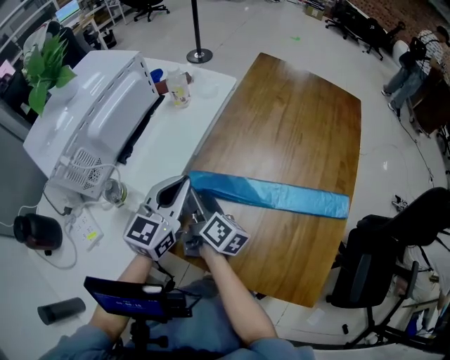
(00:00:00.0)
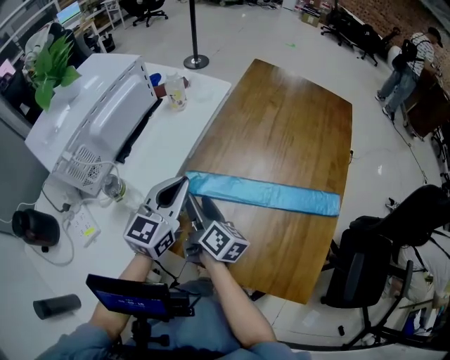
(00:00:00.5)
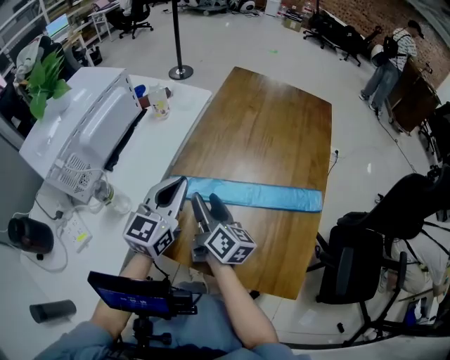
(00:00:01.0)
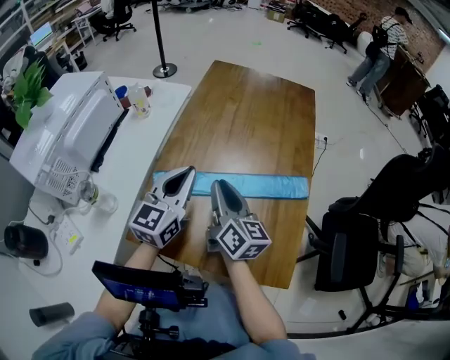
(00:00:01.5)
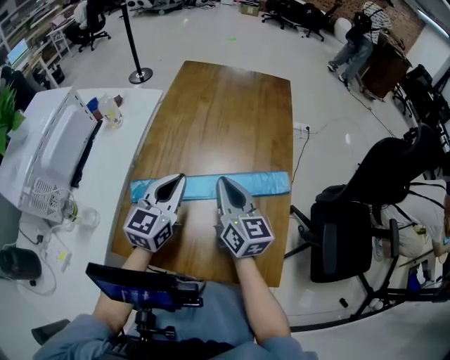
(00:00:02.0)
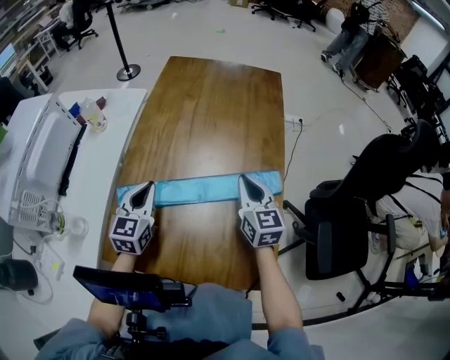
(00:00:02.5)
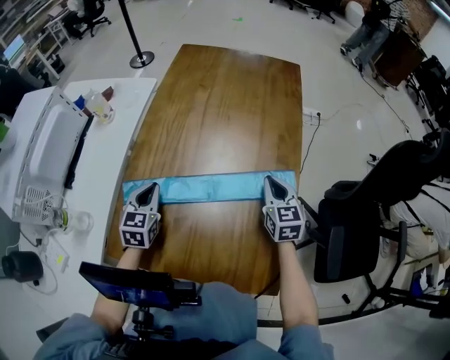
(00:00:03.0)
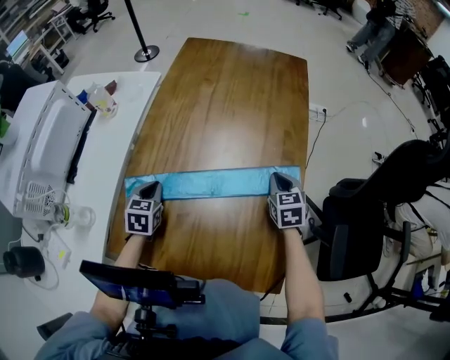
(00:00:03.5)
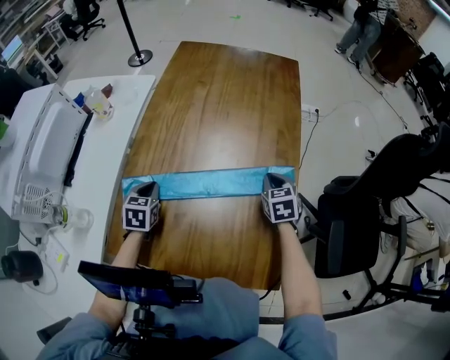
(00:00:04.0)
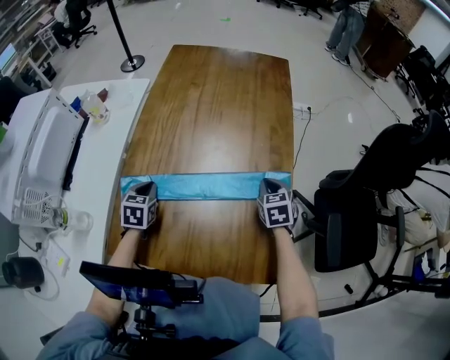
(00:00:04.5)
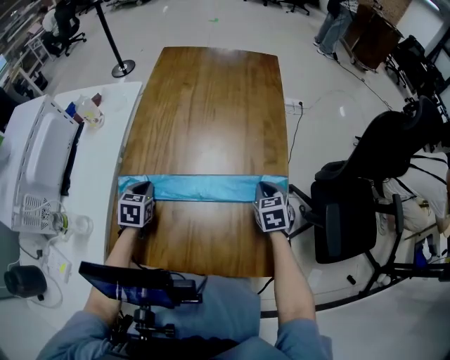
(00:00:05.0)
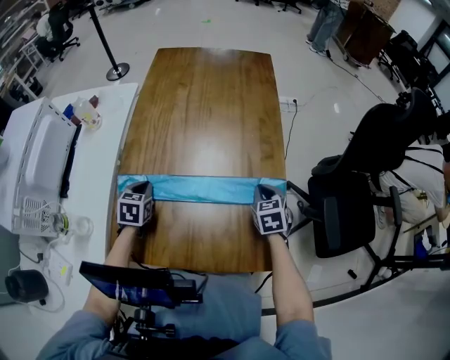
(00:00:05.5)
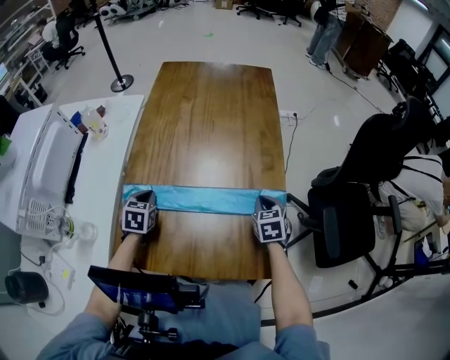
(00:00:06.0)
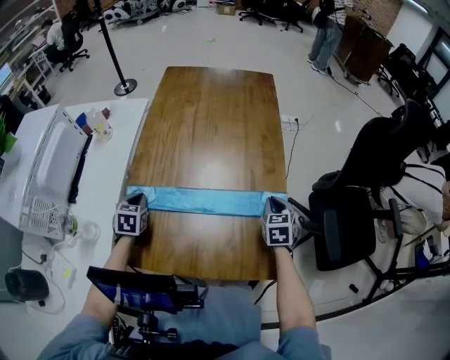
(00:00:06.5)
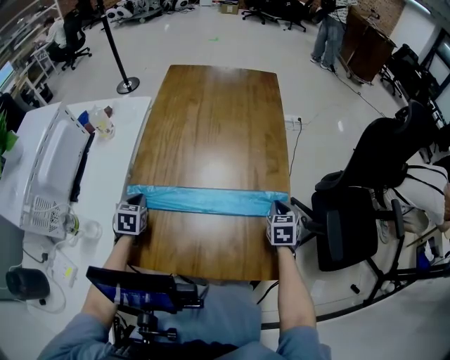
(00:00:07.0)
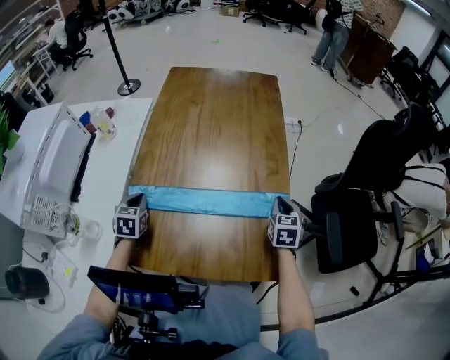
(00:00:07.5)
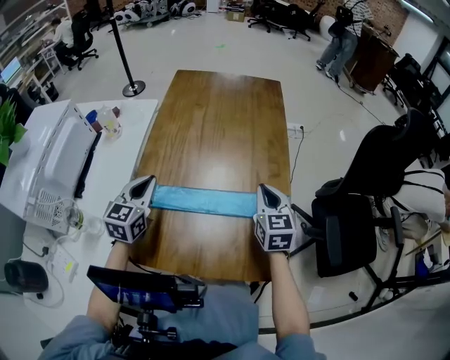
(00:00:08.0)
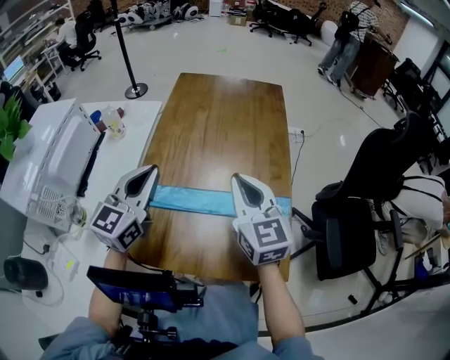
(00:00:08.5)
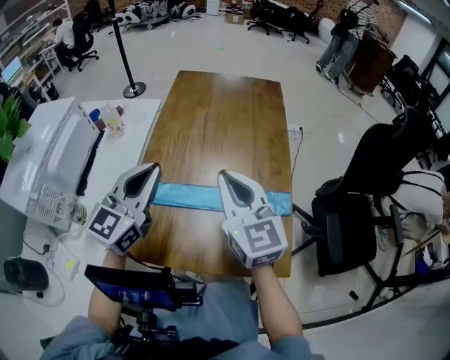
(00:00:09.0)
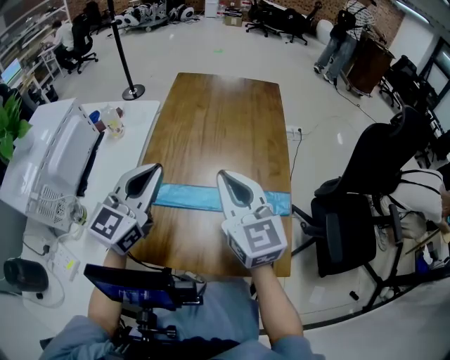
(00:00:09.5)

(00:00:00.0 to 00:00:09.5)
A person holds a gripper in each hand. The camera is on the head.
00:00:00.0 - 00:00:02.0: The grippers both shift to the right by about 25 cm. The right gripper rolls counterclockwise, seen from behind, by approximately 40 degrees, and closes its fingers.
00:00:02.0 - 00:00:04.0: The left gripper travels downward and to the left by about 20 cm, and angles its fingers downward, by about 40 degrees. The right gripper heads downward and to the right, covering approximately 25 cm, and tilts its fingers about 40 degrees downward.
00:00:04.0 - 00:00:05.5: The right gripper shifts approximately 10 cm backward.
00:00:05.5 - 00:00:07.5: The left gripper is displaced to the left by about 5 cm, while the right gripper ends up approximately 5 cm from where it was.
00:00:07.5 - 00:00:09.5: The left gripper moves upward, some 30 cm, and angles its fingers upward, by approximately 50 degrees. Meanwhile the right gripper heads upward and to the left, covering some 35 cm, and tilts its fingers roughly 40 degrees upward.

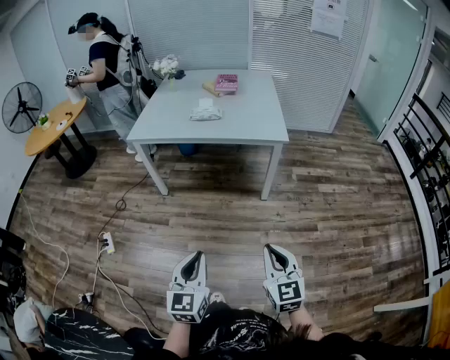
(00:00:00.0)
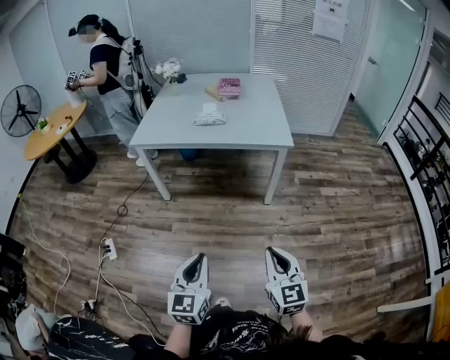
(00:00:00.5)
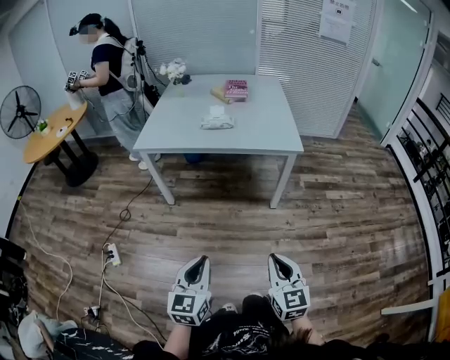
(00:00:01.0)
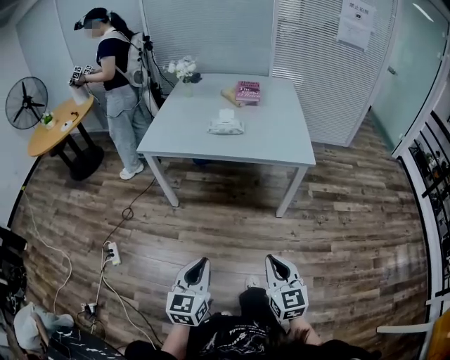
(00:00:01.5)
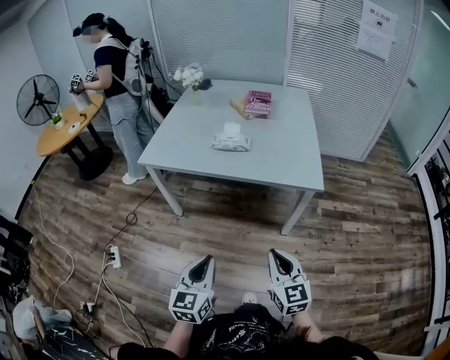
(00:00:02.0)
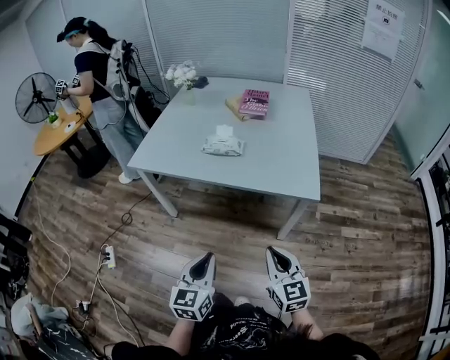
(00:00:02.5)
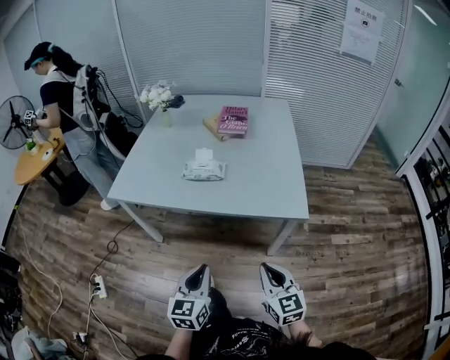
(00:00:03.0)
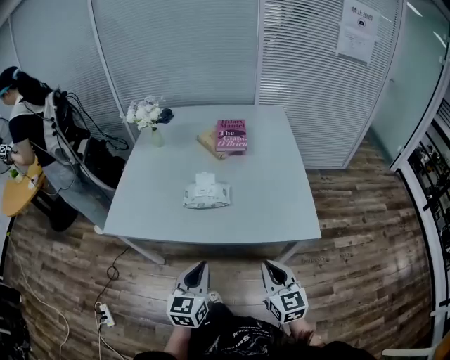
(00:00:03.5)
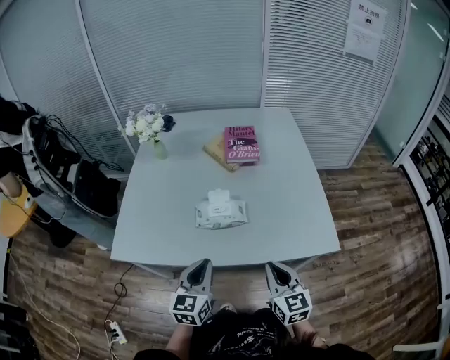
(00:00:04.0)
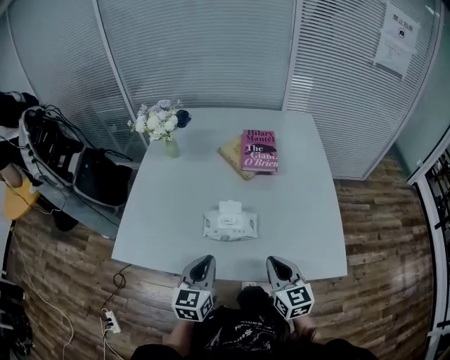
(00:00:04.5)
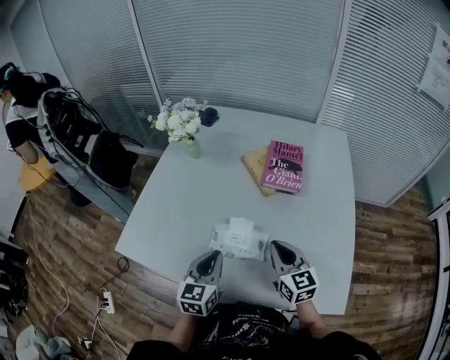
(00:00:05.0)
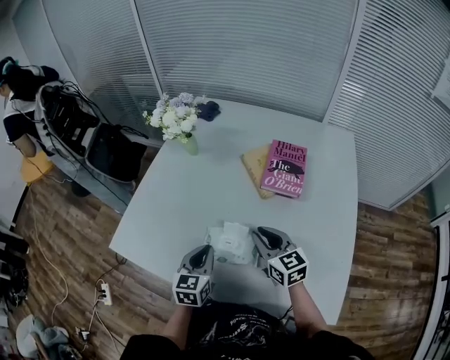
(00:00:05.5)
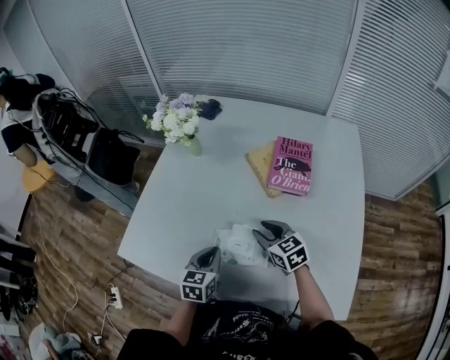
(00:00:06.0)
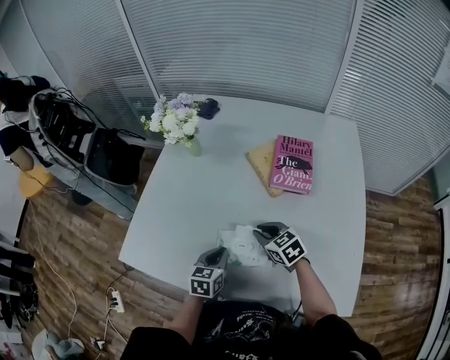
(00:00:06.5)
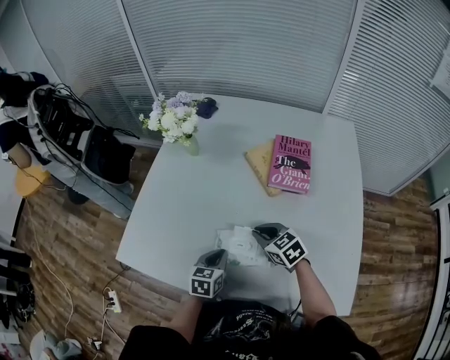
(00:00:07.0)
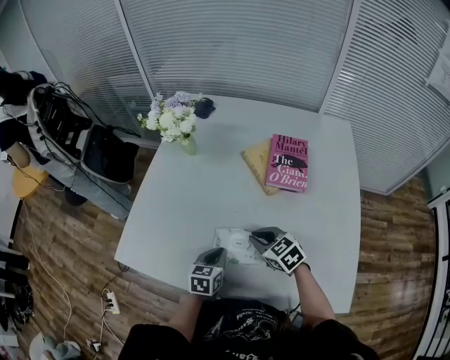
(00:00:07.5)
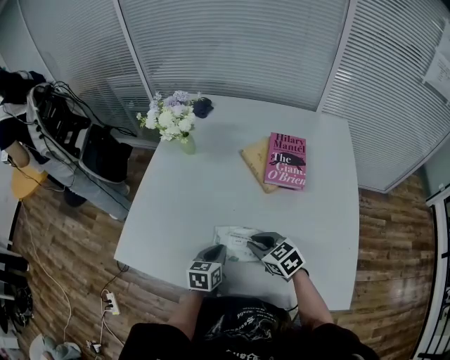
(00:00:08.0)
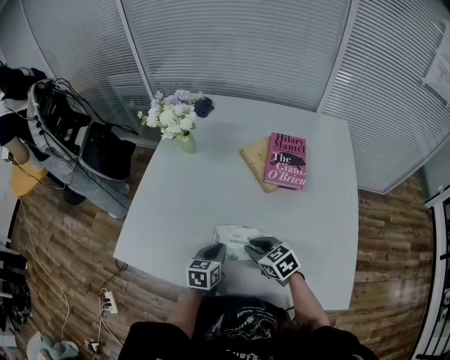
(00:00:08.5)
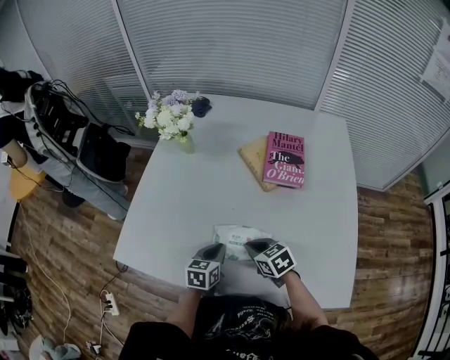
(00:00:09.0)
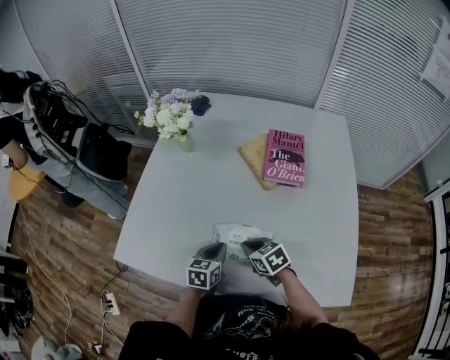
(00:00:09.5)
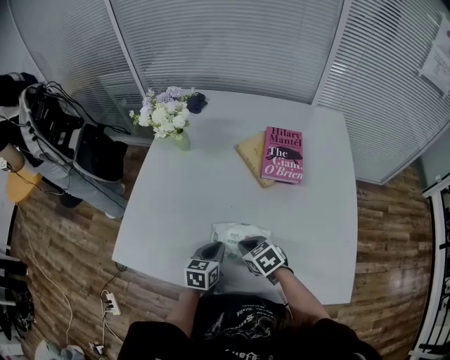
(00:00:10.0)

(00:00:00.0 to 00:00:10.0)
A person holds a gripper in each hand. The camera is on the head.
00:00:00.0 - 00:00:02.0: Both grippers travel together forward, approximately 30 cm.
00:00:02.0 - 00:00:04.0: Both grippers travel together forward, roughly 40 cm.
00:00:04.0 - 00:00:06.0: The left gripper shifts by approximately 25 cm, and changes its angle by roughly 20 degrees; the right gripper shifts by roughly 35 cm, turns by some 40 degrees, and opens.
00:00:06.0 - 00:00:08.0: The left gripper is displaced downward by approximately 5 cm. The right gripper goes about 5 cm backward.
00:00:08.0 - 00:00:10.0: The right gripper changes place by approximately 5 cm.

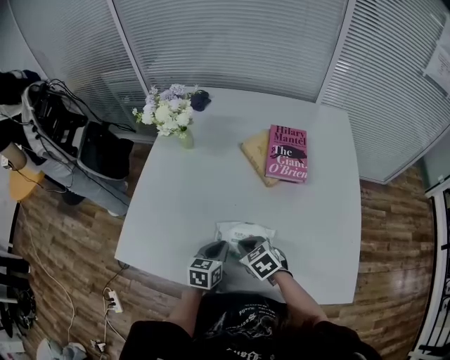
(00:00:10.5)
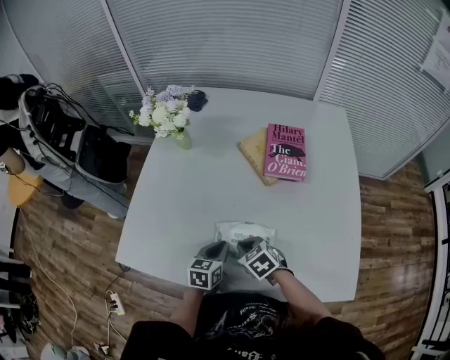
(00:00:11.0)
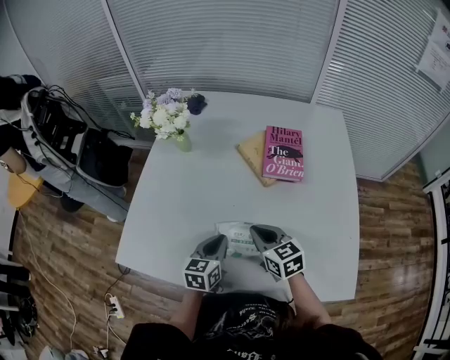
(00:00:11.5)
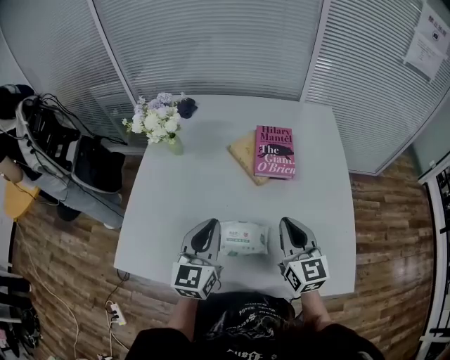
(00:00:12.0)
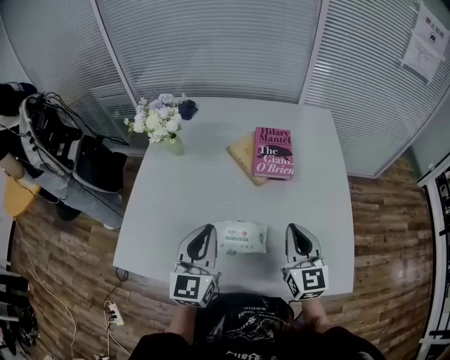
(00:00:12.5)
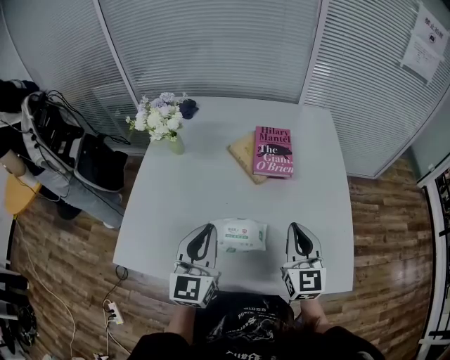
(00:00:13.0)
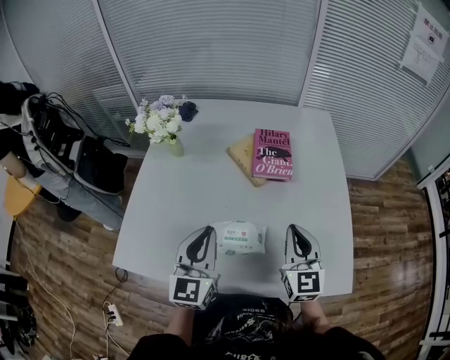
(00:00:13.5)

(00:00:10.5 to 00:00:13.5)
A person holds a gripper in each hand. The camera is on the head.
00:00:10.5 - 00:00:12.0: The right gripper heads upward and to the right, covering approximately 25 cm, and angles its fingers upward, by roughly 40 degrees; the left gripper is displaced upward by some 20 cm, and swivels about 30 degrees.
00:00:12.0 - 00:00:13.5: The grippers make only small movements.

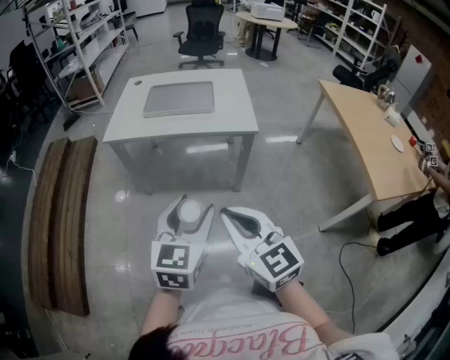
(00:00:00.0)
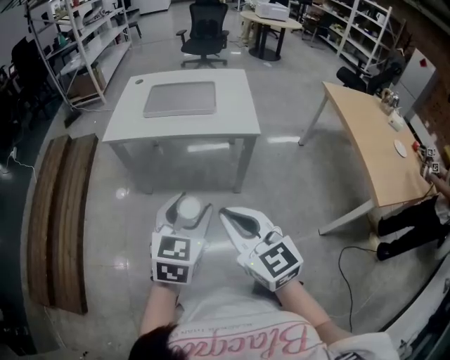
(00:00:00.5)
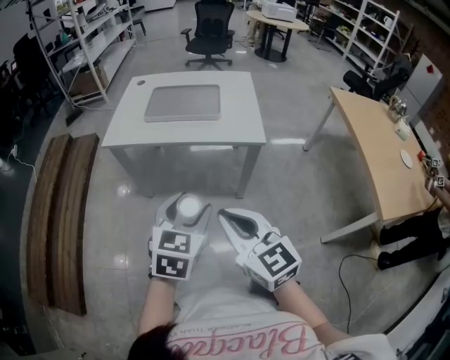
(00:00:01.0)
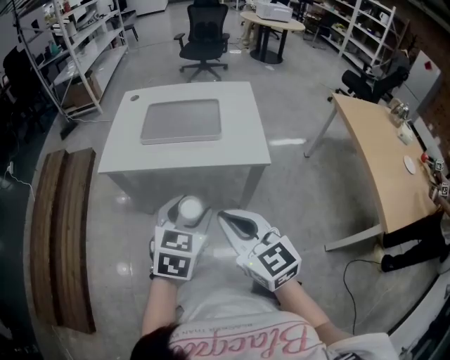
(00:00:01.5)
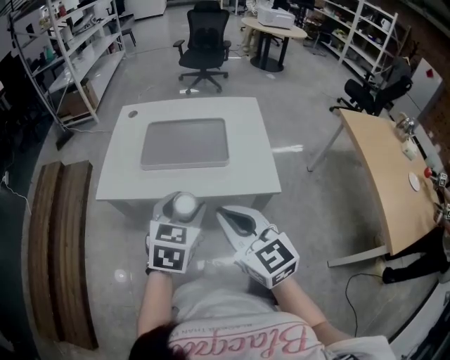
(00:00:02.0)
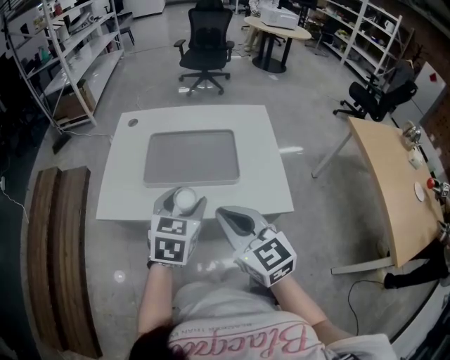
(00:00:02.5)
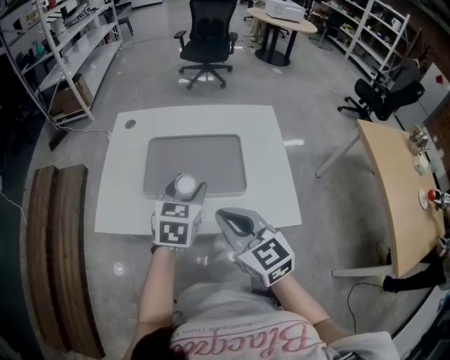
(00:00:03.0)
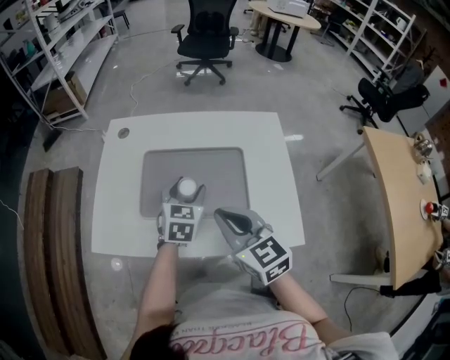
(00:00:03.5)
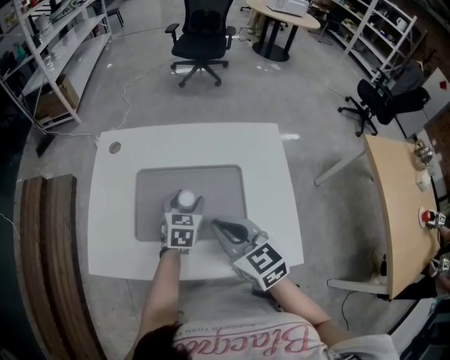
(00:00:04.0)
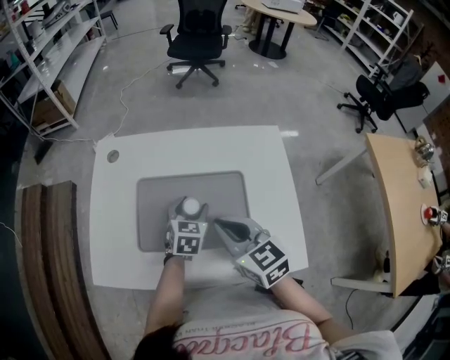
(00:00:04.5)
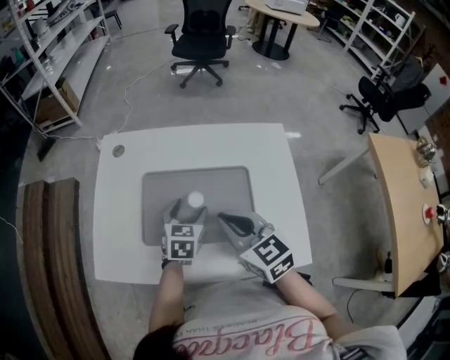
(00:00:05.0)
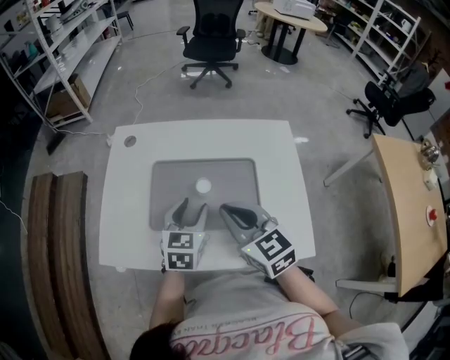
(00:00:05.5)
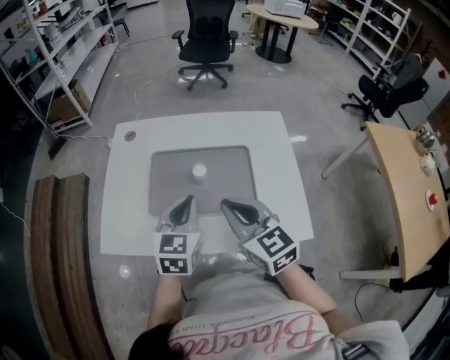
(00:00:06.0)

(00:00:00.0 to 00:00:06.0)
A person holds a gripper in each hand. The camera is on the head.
00:00:00.0 - 00:00:02.0: Both grippers travel together forward, roughly 25 cm.
00:00:02.0 - 00:00:04.0: The right gripper shifts some 20 cm forward, while the left gripper shifts some 30 cm forward and downward.
00:00:04.0 - 00:00:06.0: The left gripper goes roughly 15 cm upward, backward and to the left, and closes its fingers.
